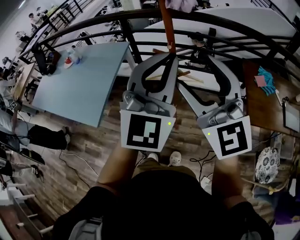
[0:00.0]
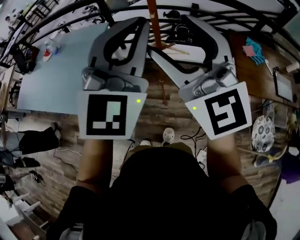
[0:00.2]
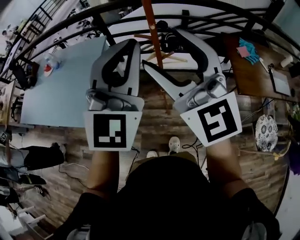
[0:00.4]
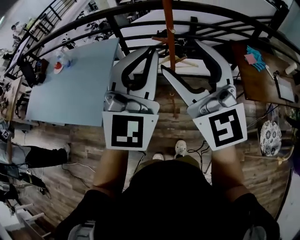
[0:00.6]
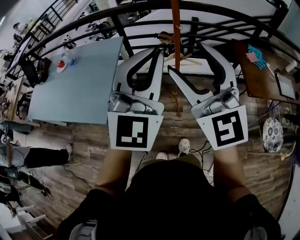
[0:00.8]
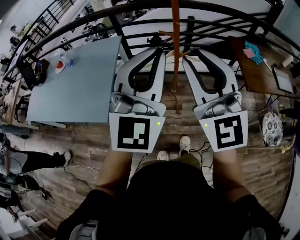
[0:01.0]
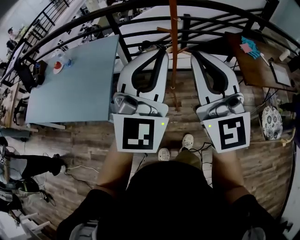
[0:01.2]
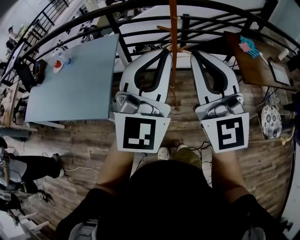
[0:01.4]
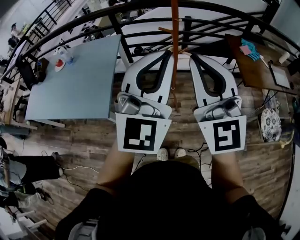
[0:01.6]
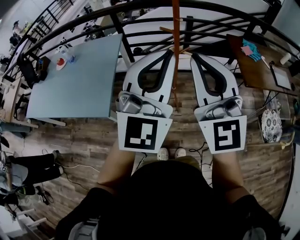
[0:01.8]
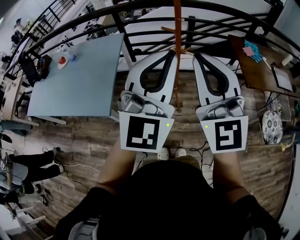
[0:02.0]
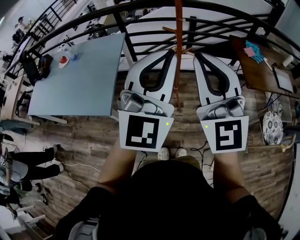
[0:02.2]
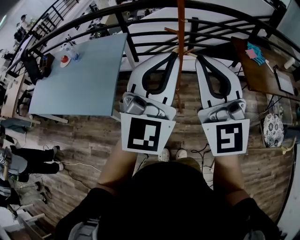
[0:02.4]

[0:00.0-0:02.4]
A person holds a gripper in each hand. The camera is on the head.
0:00.0 to 0:01.2: The right gripper heads backward and to the left, covering roughly 15 cm, and closes its fingers. The left gripper is displaced to the left and backward by about 20 cm.
0:01.2 to 0:02.4: The grippers make only small movements.

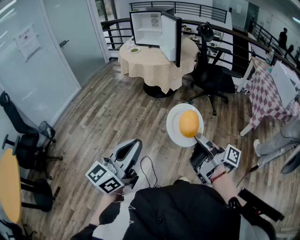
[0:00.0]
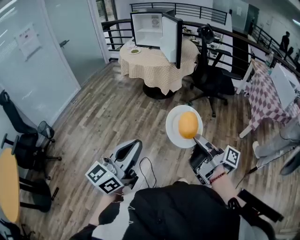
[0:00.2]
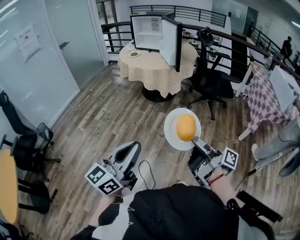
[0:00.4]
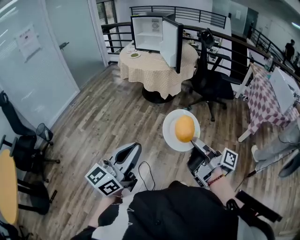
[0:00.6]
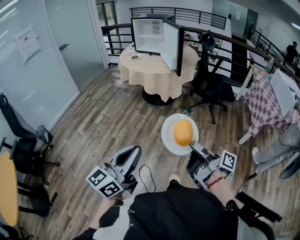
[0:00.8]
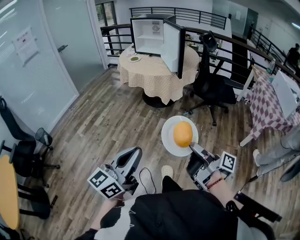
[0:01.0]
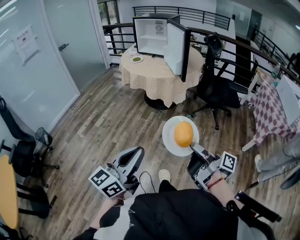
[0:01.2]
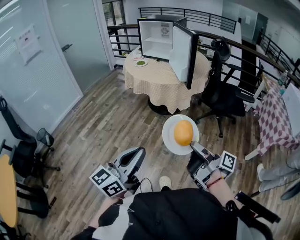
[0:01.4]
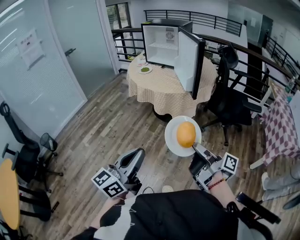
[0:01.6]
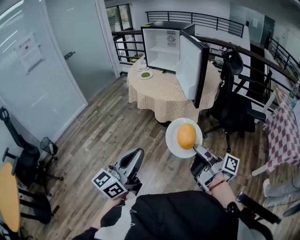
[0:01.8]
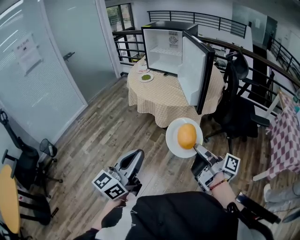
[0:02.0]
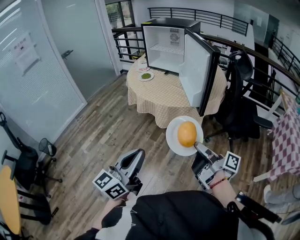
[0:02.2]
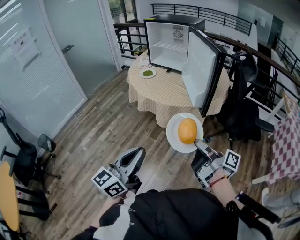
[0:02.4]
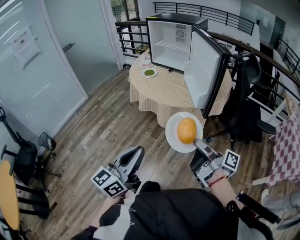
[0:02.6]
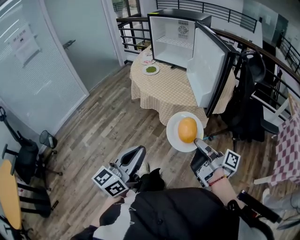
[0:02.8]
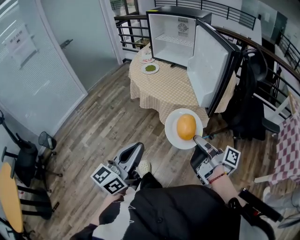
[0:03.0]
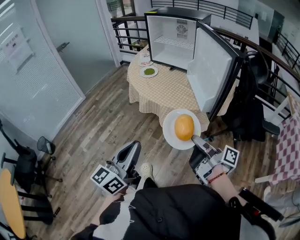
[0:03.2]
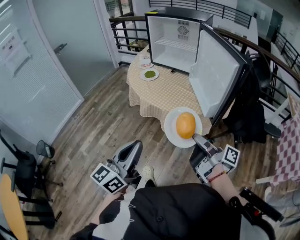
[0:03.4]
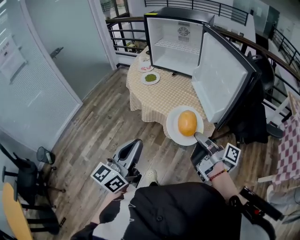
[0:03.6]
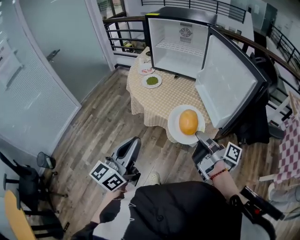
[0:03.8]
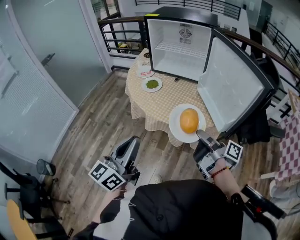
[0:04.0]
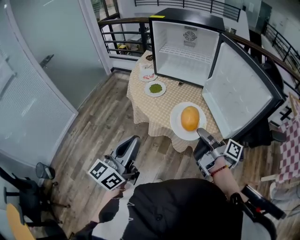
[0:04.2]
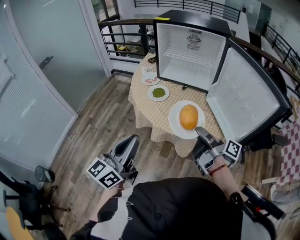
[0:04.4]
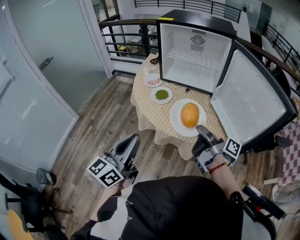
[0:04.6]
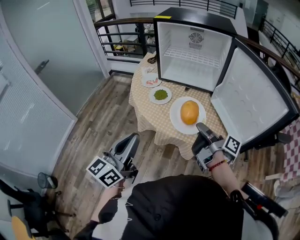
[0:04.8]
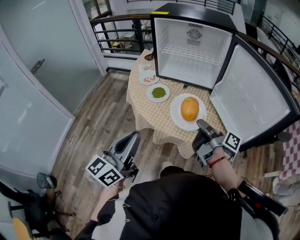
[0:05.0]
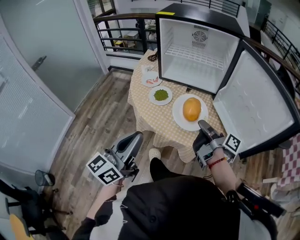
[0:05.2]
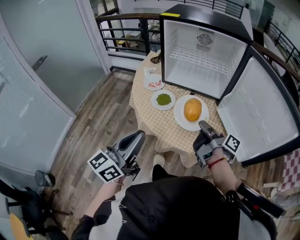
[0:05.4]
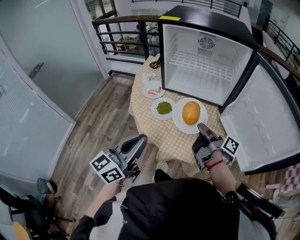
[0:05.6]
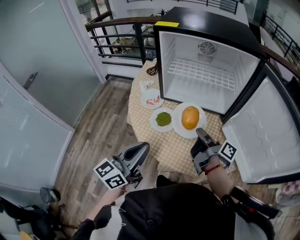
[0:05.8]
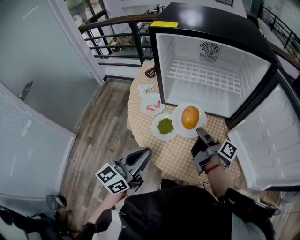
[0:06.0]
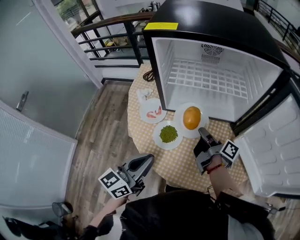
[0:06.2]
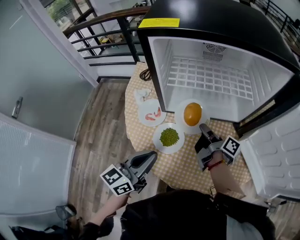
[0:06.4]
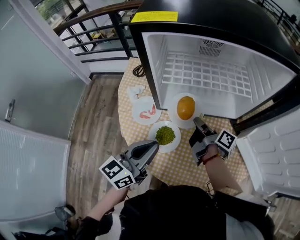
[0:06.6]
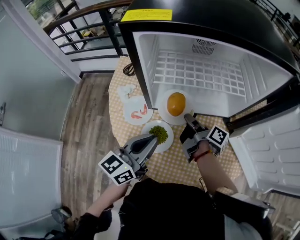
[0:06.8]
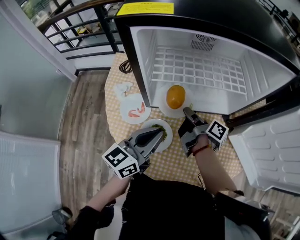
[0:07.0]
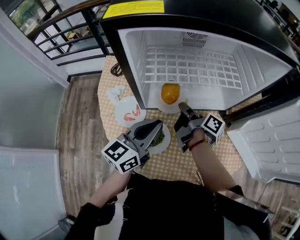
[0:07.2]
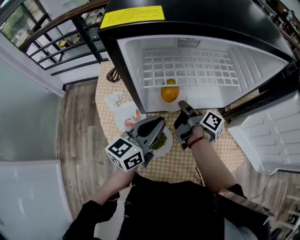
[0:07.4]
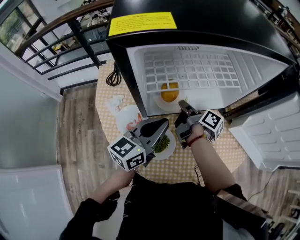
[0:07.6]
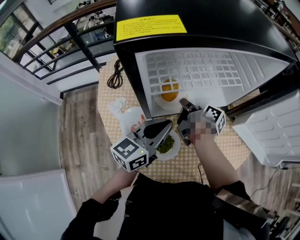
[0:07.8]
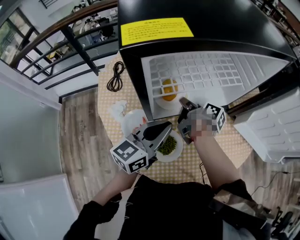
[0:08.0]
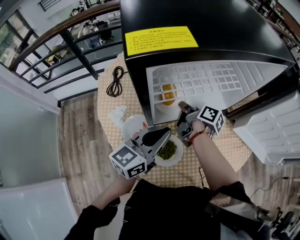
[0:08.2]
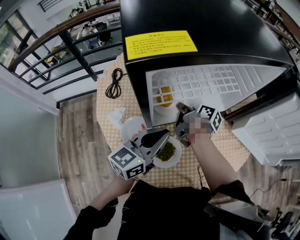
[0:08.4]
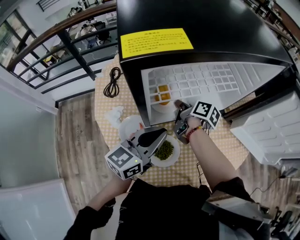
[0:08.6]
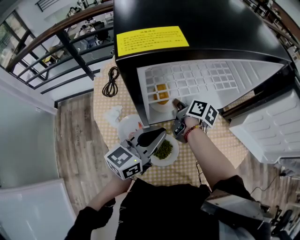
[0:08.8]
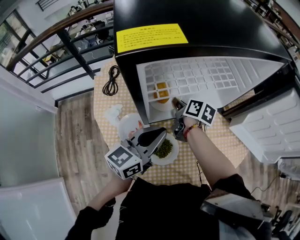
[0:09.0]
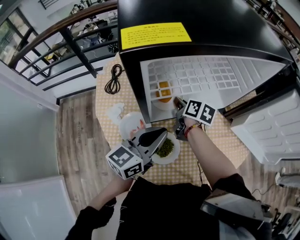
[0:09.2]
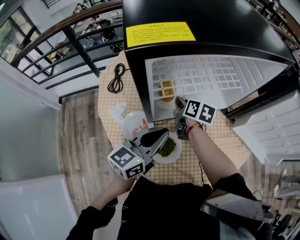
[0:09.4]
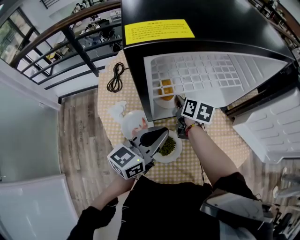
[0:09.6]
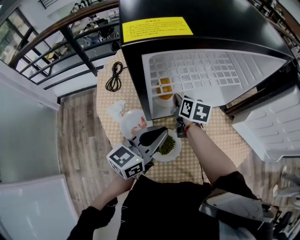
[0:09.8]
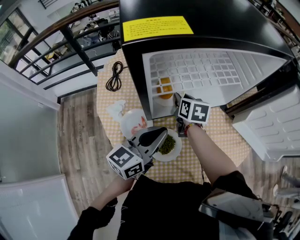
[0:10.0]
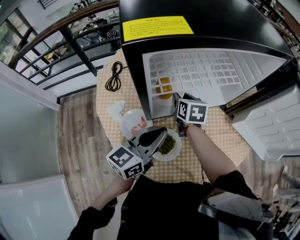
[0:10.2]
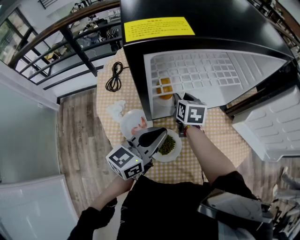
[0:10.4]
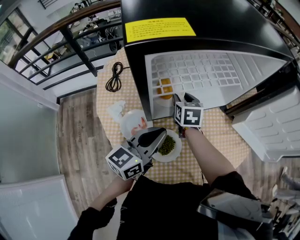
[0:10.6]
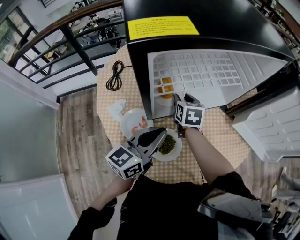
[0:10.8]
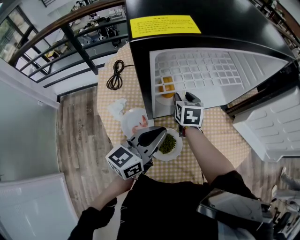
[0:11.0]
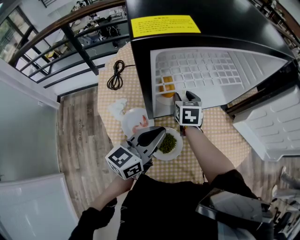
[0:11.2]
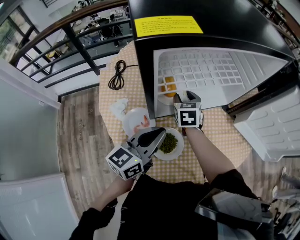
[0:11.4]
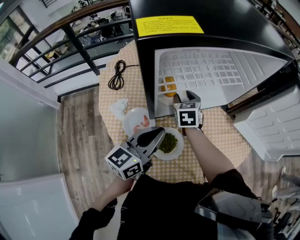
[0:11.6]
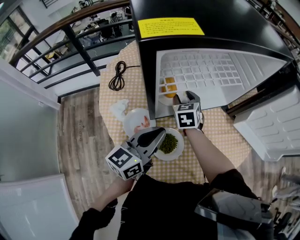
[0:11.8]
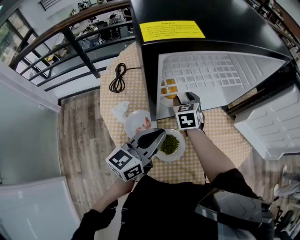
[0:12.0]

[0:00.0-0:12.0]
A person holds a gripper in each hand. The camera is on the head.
0:00.0 to 0:01.6: Both grippers travel together forward, about 30 cm.
0:01.6 to 0:03.0: The two grippers go roughly 25 cm forward.
0:03.0 to 0:04.4: The grippers both shift forward and to the left by approximately 35 cm.
0:04.4 to 0:06.0: The two grippers go some 30 cm forward.
0:06.0 to 0:07.6: The left gripper goes approximately 25 cm forward, and changes its angle by approximately 30 degrees. Meanwhile the right gripper shifts about 20 cm forward and to the left, and swivels approximately 20 degrees.
0:07.6 to 0:09.0: The right gripper changes its angle by some 30 degrees.
0:09.0 to 0:10.4: The right gripper changes its angle by approximately 40 degrees, and opens up.
0:10.4 to 0:12.0: The right gripper turns by some 20 degrees.

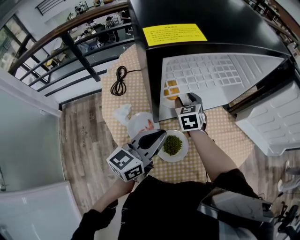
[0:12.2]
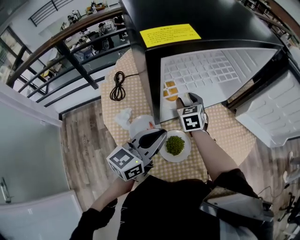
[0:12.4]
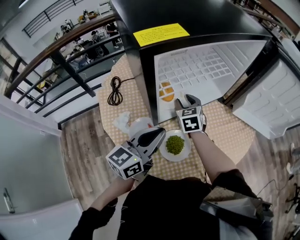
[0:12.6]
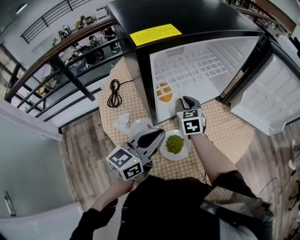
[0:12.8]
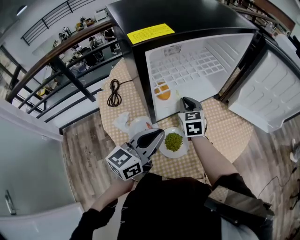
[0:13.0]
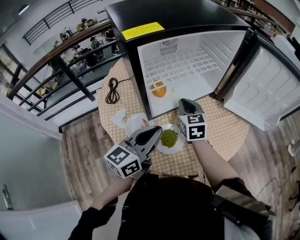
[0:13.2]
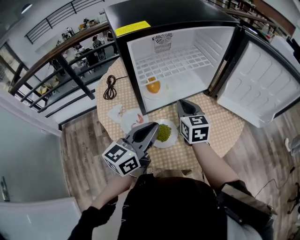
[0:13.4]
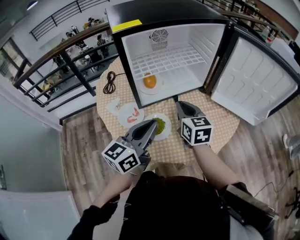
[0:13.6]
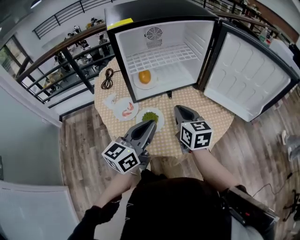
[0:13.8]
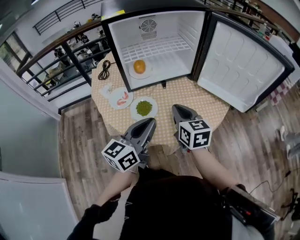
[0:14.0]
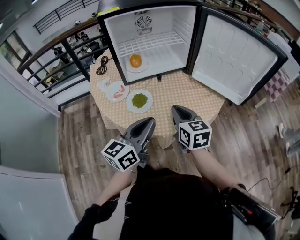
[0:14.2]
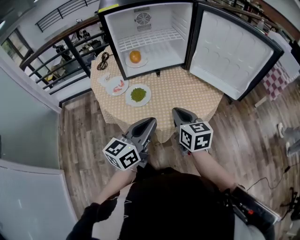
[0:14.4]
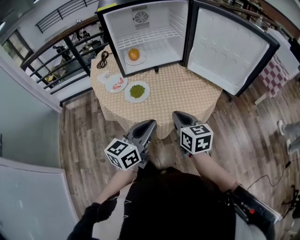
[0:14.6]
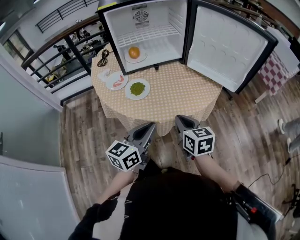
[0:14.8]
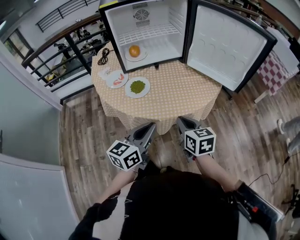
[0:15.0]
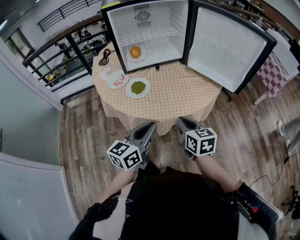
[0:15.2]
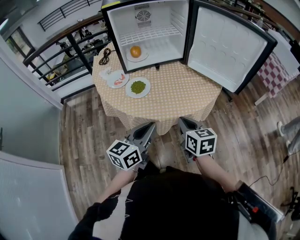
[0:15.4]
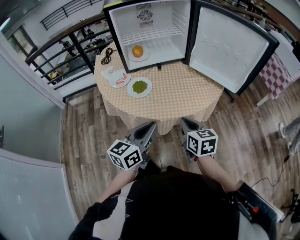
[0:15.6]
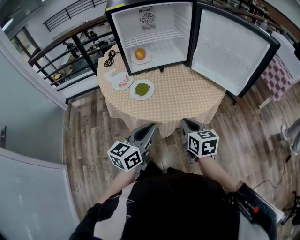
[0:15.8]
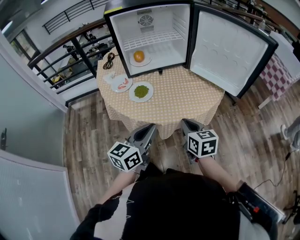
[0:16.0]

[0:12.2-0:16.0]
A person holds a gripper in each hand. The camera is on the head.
0:12.2 to 0:13.4: The right gripper is displaced backward, to the right and upward by approximately 20 cm, changes its angle by some 20 degrees, and closes its fingers. Meanwhile the left gripper is displaced backward and to the right by roughly 5 cm.
0:13.4 to 0:14.8: The two grippers go about 30 cm backward and to the right.
0:14.8 to 0:16.0: There are only small adjustments of the grippers.

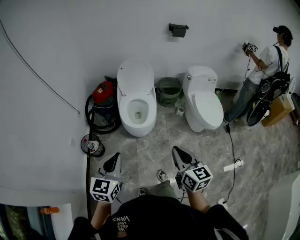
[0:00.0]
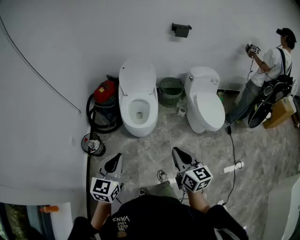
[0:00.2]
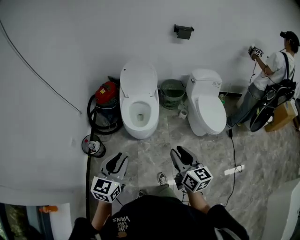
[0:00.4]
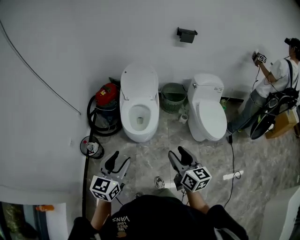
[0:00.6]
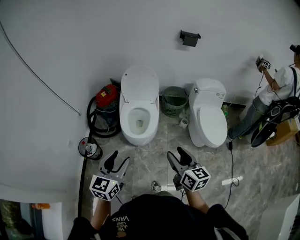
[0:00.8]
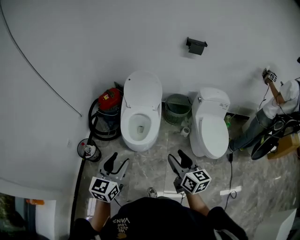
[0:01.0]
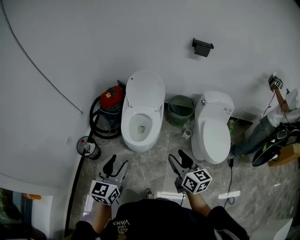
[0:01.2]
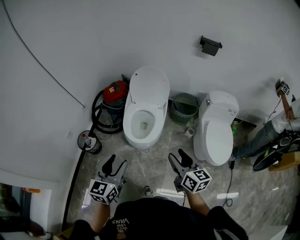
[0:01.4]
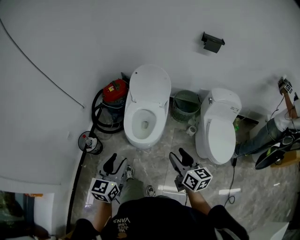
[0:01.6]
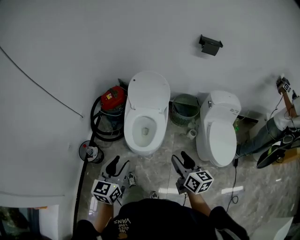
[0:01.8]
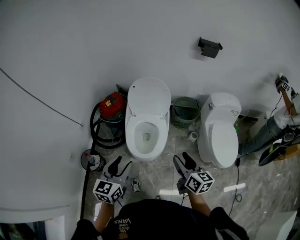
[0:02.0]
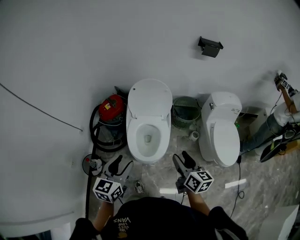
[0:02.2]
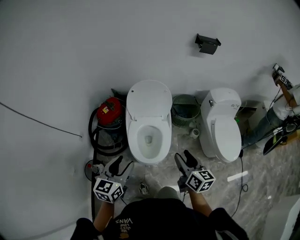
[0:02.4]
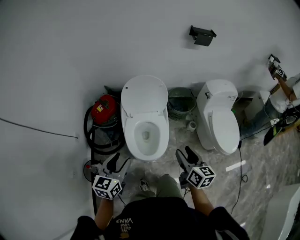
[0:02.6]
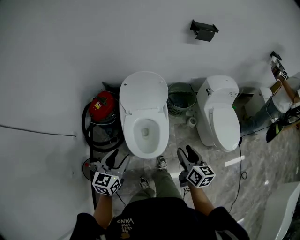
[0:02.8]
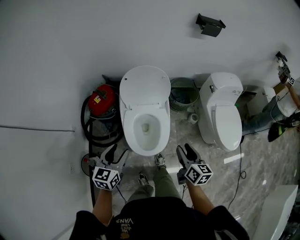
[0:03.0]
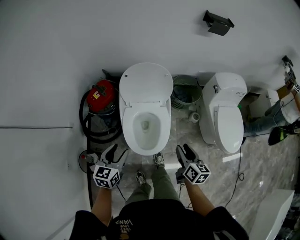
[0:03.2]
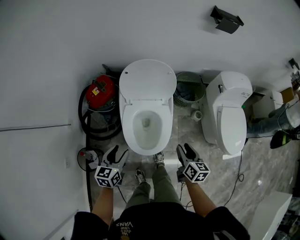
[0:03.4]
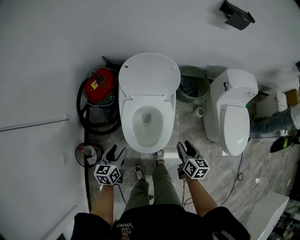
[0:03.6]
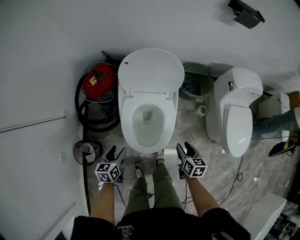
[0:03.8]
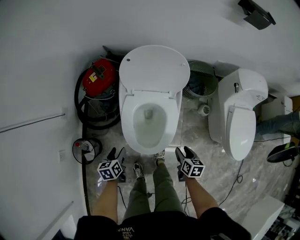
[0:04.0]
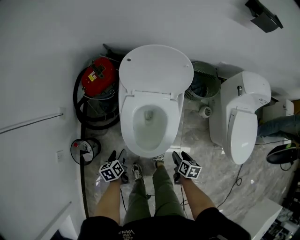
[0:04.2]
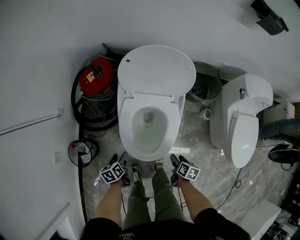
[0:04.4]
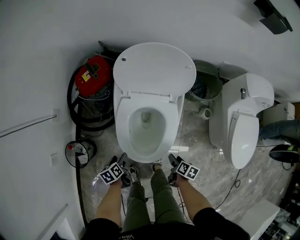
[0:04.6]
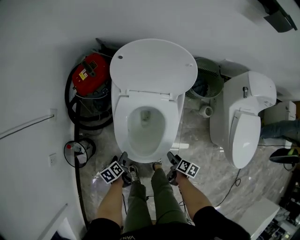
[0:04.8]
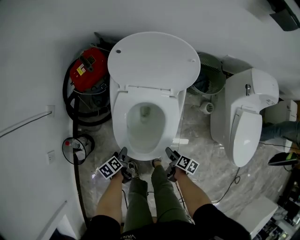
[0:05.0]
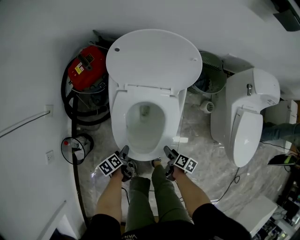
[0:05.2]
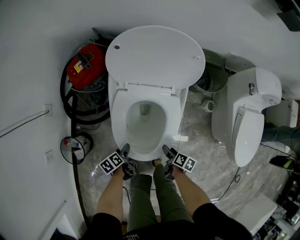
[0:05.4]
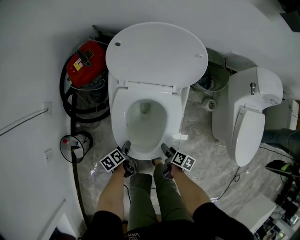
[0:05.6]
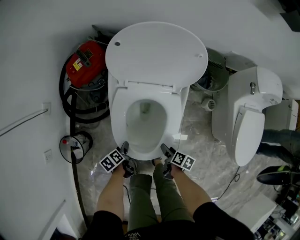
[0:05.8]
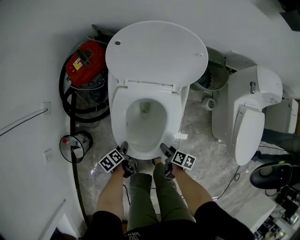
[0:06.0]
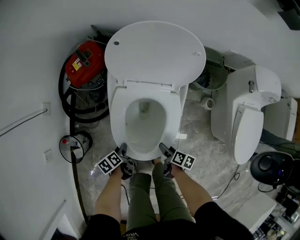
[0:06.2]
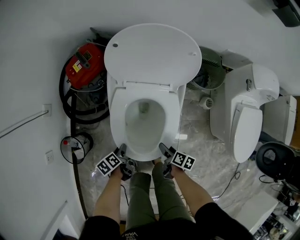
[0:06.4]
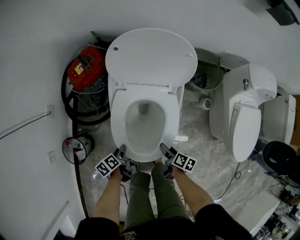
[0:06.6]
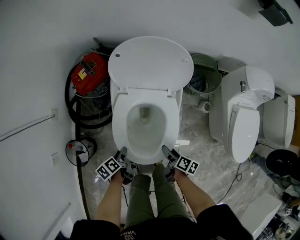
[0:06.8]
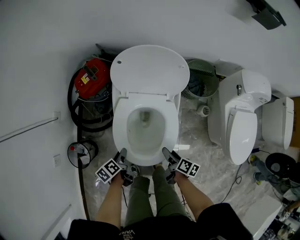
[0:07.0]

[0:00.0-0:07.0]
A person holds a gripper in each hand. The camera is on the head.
0:00.0 to 0:01.4: Both grippers move forward and to the right, some 20 cm. The left gripper opens its fingers; the right gripper opens up.
0:01.4 to 0:02.8: Both grippers travel together forward and to the left, roughly 25 cm. The left gripper turns by some 20 degrees; the right gripper rotates some 30 degrees.
0:02.8 to 0:04.2: Both grippers move downward, roughly 35 cm. The left gripper tips its fingers downward by some 40 degrees, while the right gripper angles its fingers downward, by approximately 40 degrees.
0:04.2 to 0:05.6: The two grippers go about 15 cm downward. The right gripper swivels approximately 30 degrees, while the left gripper turns by approximately 20 degrees.
0:05.6 to 0:07.0: The two grippers go some 15 cm upward. The left gripper closes.
